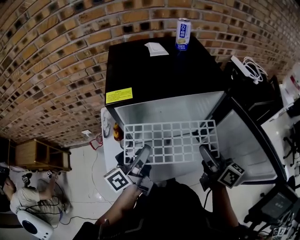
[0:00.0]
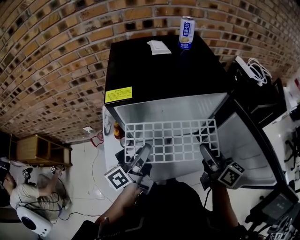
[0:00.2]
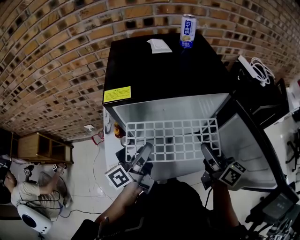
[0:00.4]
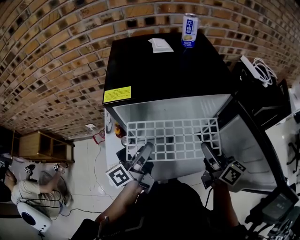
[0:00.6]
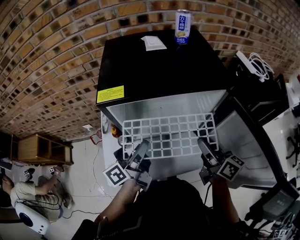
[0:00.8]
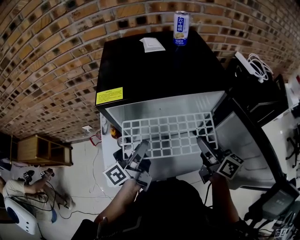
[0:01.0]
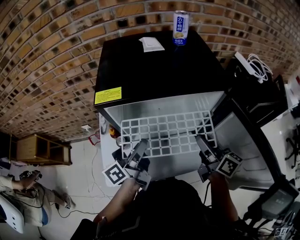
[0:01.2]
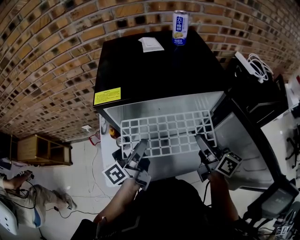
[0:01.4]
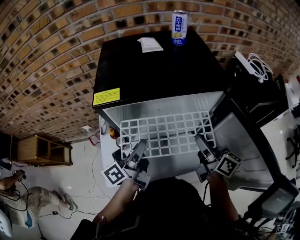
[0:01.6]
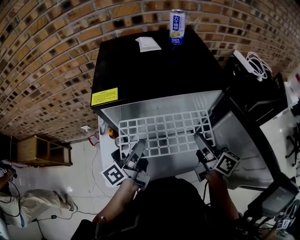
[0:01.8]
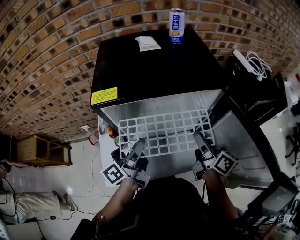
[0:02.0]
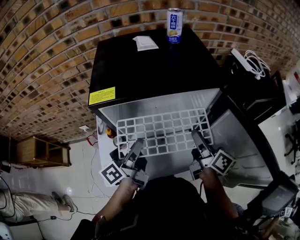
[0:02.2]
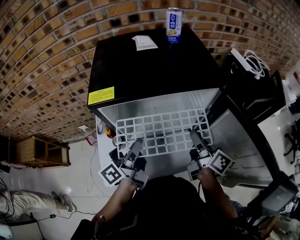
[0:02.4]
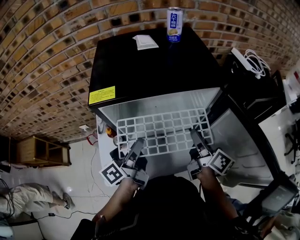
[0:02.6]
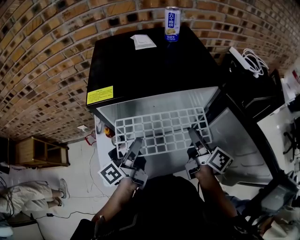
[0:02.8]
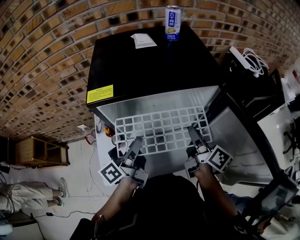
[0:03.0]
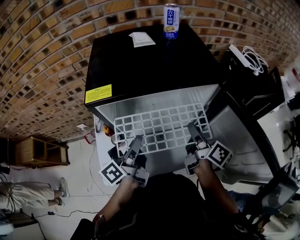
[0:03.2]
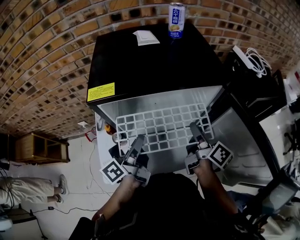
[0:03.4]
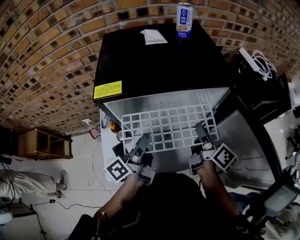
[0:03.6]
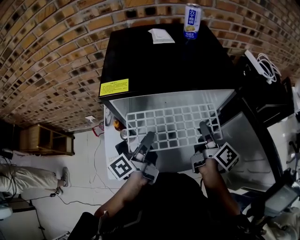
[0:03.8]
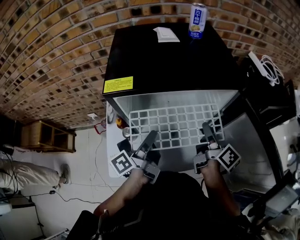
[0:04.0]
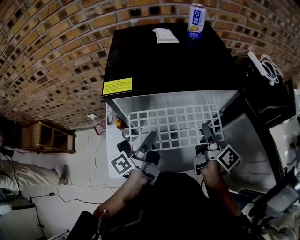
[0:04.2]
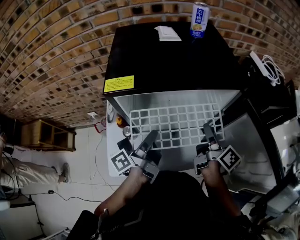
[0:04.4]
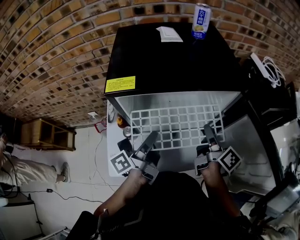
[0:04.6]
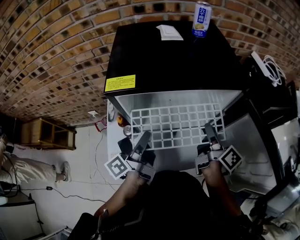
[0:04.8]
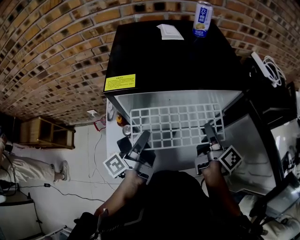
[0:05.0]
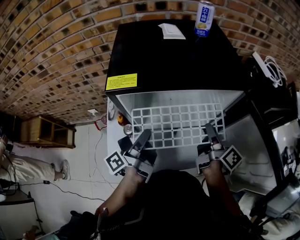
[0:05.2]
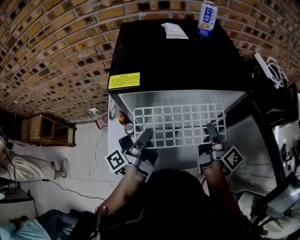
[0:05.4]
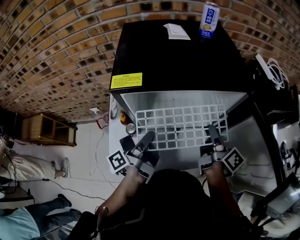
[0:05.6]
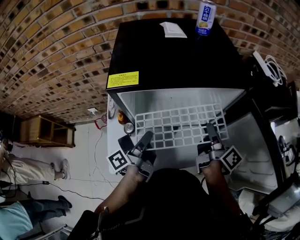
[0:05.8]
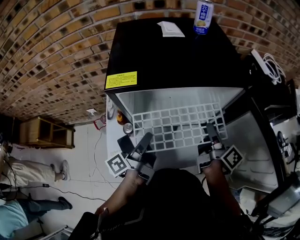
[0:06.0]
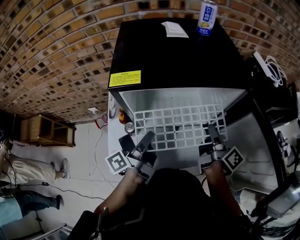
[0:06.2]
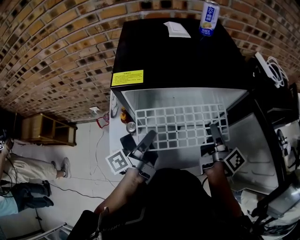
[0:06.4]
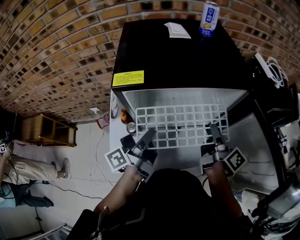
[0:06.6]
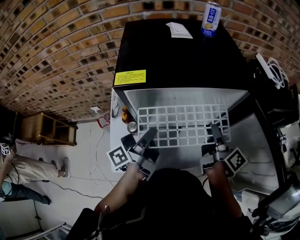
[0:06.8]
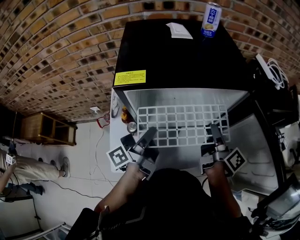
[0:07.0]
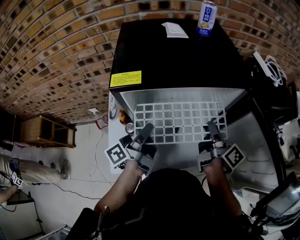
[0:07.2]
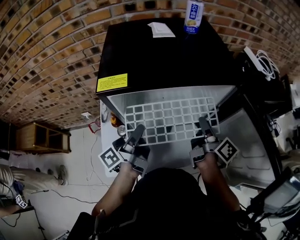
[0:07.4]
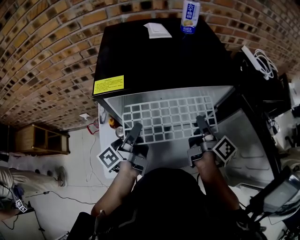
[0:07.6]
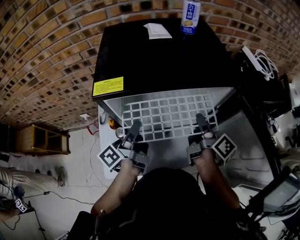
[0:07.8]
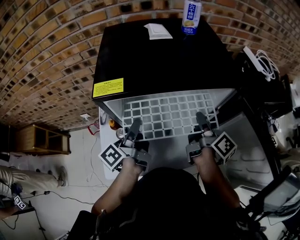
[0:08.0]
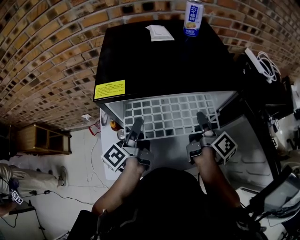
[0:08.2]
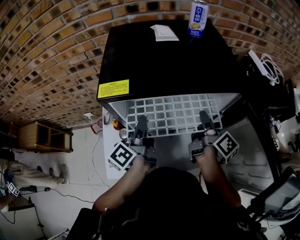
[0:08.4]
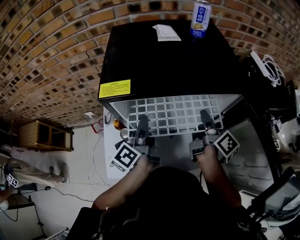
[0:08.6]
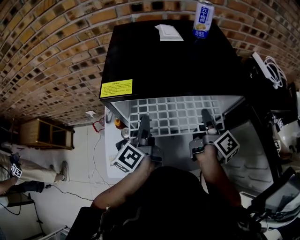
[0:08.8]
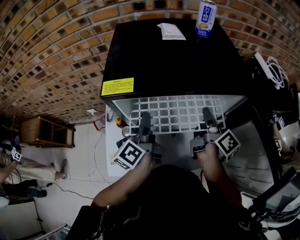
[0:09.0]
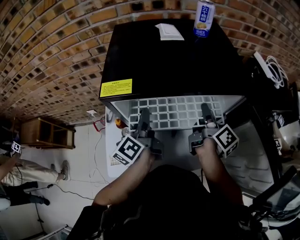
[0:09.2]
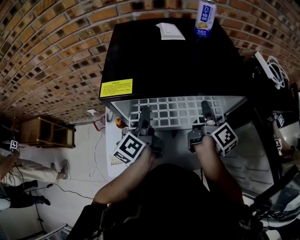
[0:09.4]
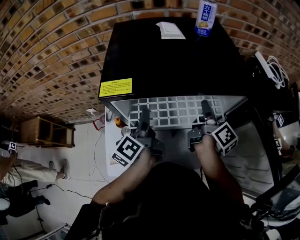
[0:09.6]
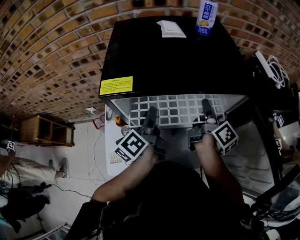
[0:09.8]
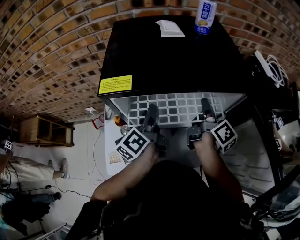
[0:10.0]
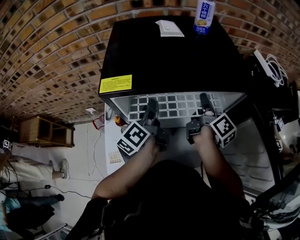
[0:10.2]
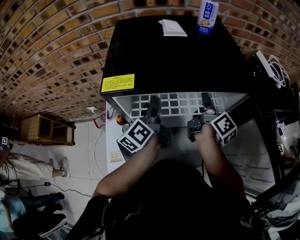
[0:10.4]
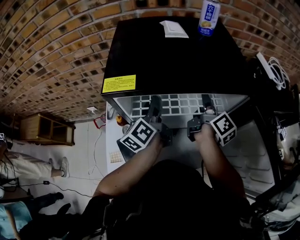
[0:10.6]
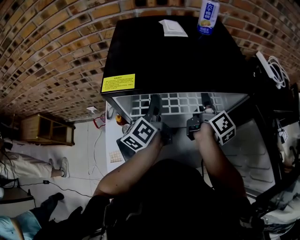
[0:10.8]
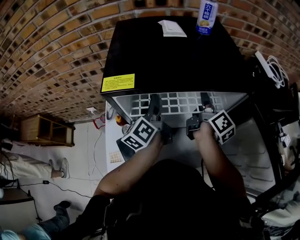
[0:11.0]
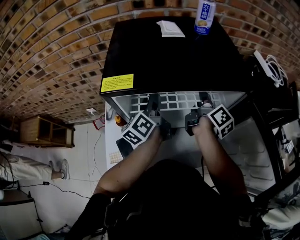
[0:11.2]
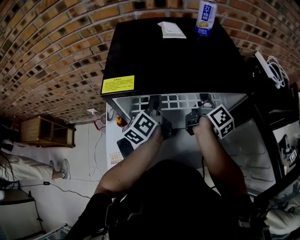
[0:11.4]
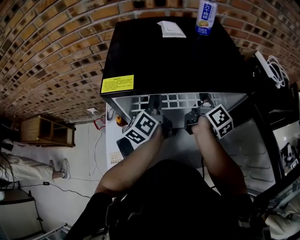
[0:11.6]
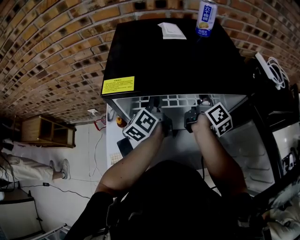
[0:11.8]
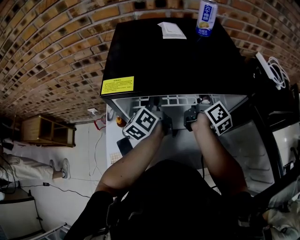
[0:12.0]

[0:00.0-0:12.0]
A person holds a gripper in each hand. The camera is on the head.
0:00.0 to 0:01.6: The right gripper heads forward, covering approximately 5 cm.
0:01.6 to 0:03.0: The grippers make only small movements.
0:03.0 to 0:04.4: There are only small adjustments of the grippers.
0:04.4 to 0:07.6: There are only small adjustments of the grippers.
0:07.6 to 0:09.0: The right gripper shifts roughly 5 cm forward. Meanwhile the left gripper turns by roughly 30 degrees.
0:09.0 to 0:10.4: Both grippers travel together forward, some 5 cm.
0:10.4 to 0:12.0: The grippers stay close to where they were, moving slightly.

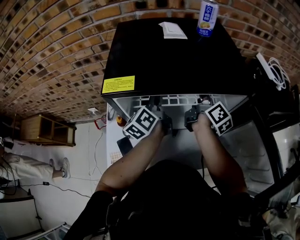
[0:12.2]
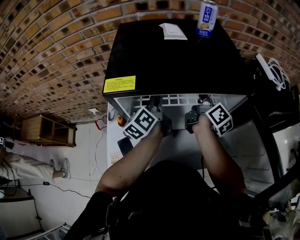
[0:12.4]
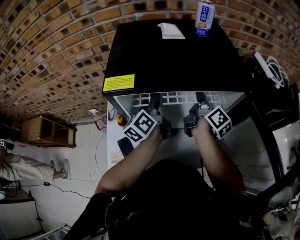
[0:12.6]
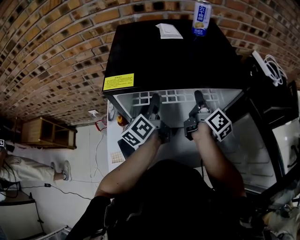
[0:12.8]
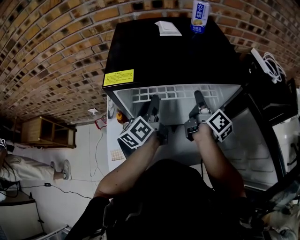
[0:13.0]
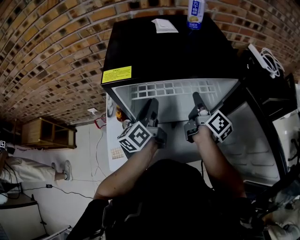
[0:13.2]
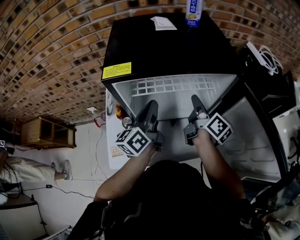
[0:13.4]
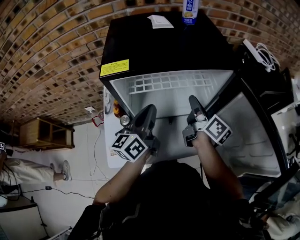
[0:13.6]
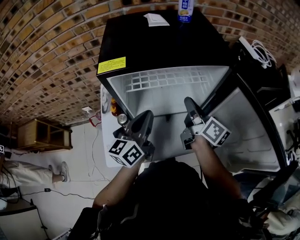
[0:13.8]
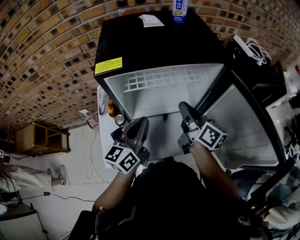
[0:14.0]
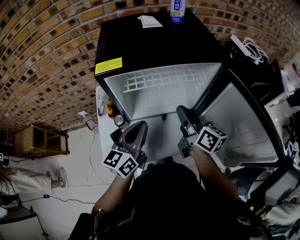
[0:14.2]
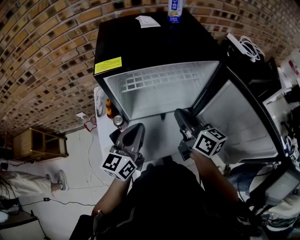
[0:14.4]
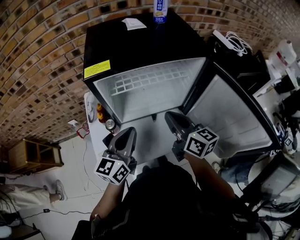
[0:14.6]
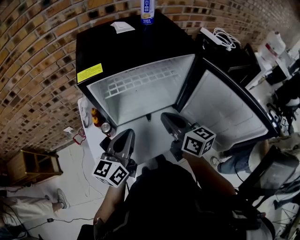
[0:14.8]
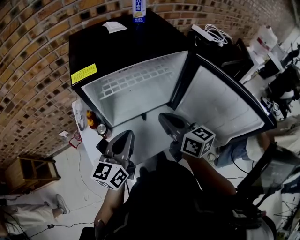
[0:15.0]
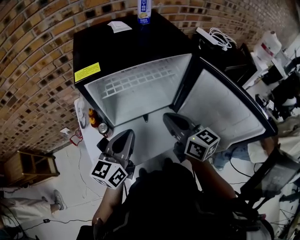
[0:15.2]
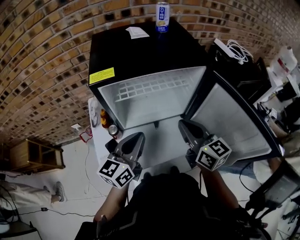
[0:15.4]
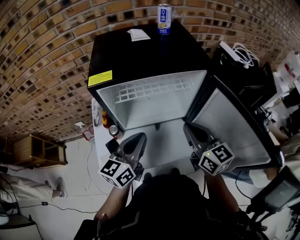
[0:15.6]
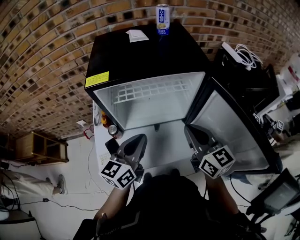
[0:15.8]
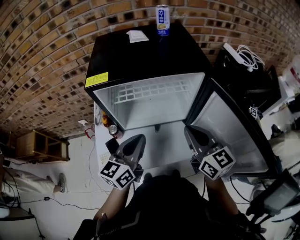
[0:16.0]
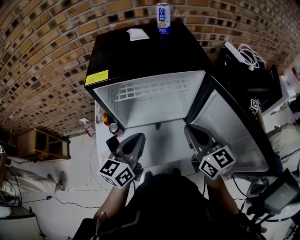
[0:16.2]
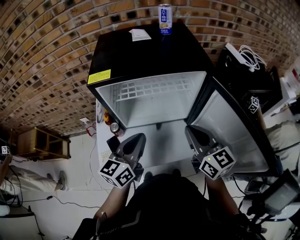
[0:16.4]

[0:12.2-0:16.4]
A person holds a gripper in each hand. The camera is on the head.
0:12.2 to 0:13.6: The two grippers go roughly 15 cm backward. The left gripper changes its angle by some 30 degrees, and closes up.
0:13.6 to 0:15.0: Both grippers move backward, roughly 10 cm. The right gripper rotates roughly 30 degrees, while the left gripper turns by some 20 degrees.
0:15.0 to 0:16.4: The right gripper shifts roughly 10 cm to the right.

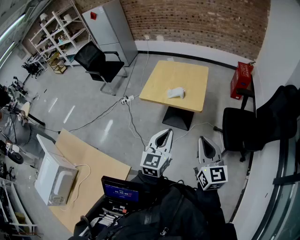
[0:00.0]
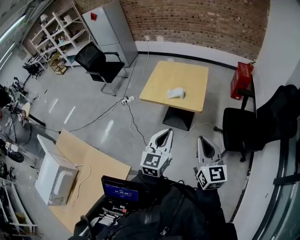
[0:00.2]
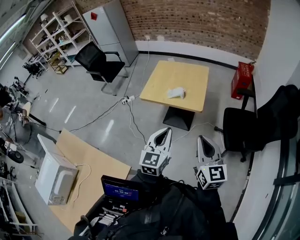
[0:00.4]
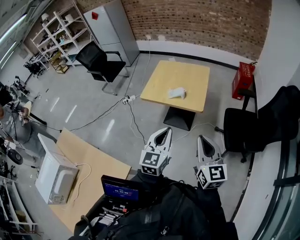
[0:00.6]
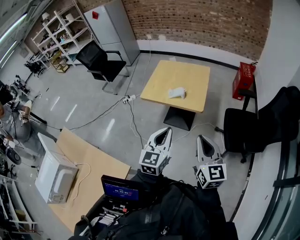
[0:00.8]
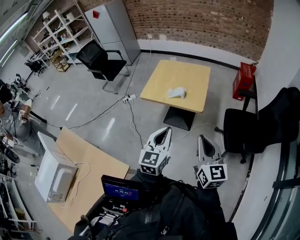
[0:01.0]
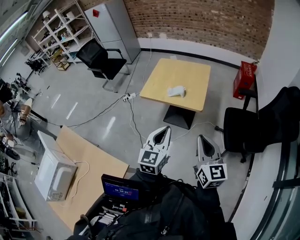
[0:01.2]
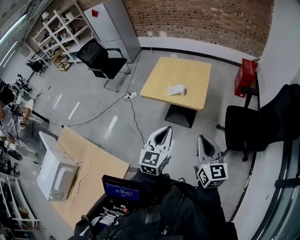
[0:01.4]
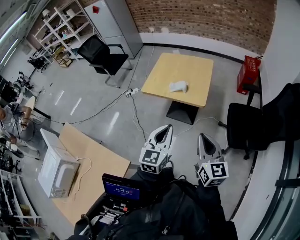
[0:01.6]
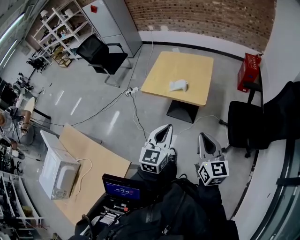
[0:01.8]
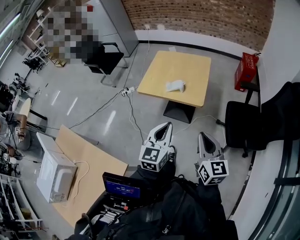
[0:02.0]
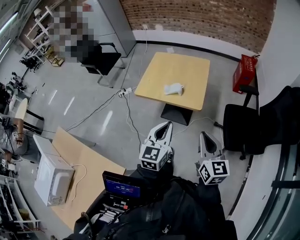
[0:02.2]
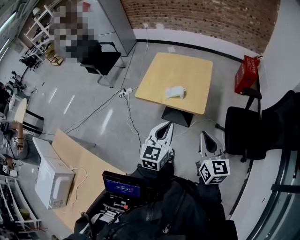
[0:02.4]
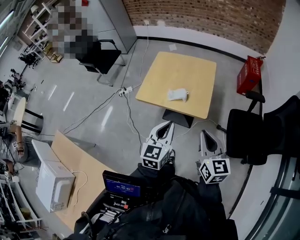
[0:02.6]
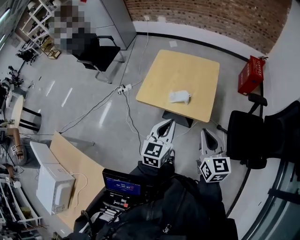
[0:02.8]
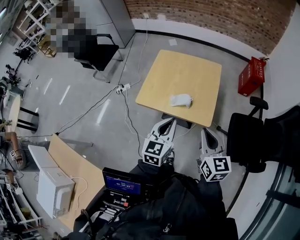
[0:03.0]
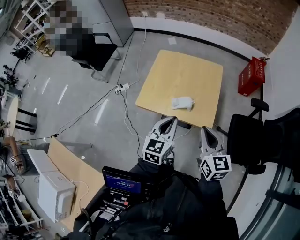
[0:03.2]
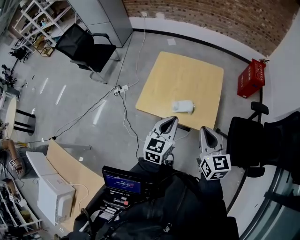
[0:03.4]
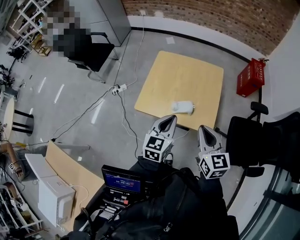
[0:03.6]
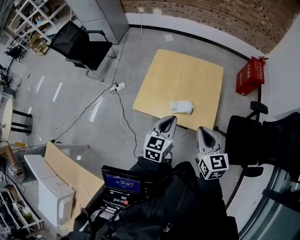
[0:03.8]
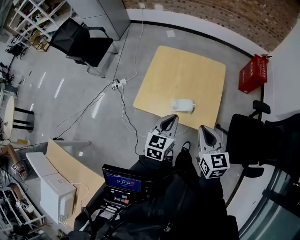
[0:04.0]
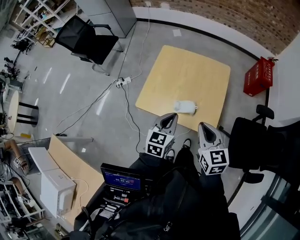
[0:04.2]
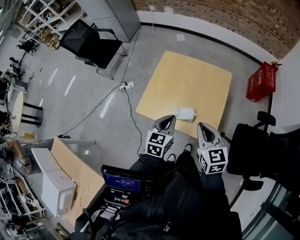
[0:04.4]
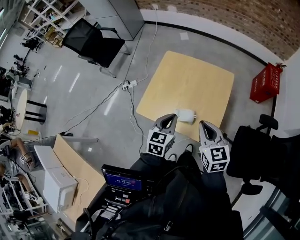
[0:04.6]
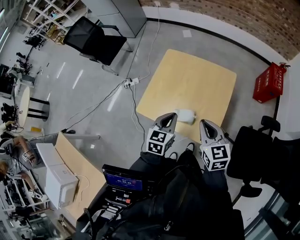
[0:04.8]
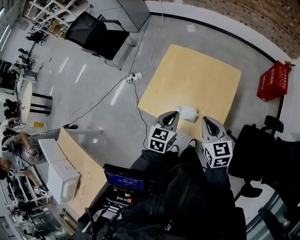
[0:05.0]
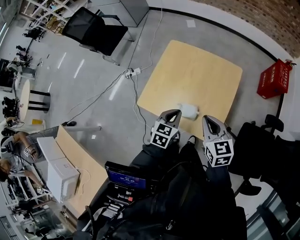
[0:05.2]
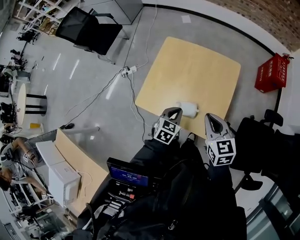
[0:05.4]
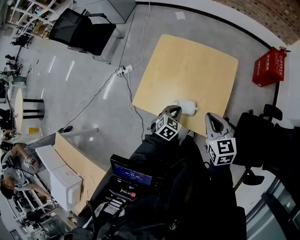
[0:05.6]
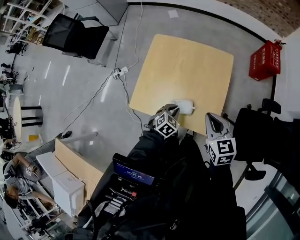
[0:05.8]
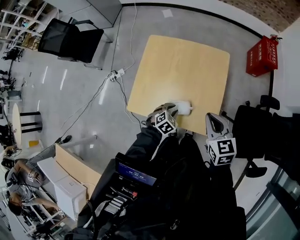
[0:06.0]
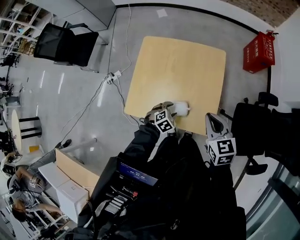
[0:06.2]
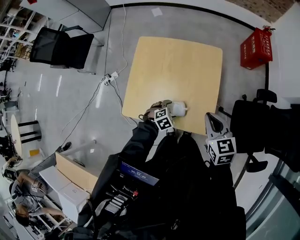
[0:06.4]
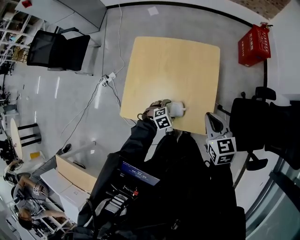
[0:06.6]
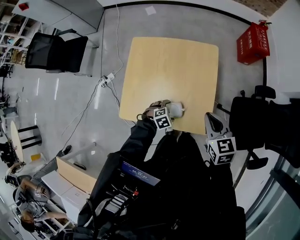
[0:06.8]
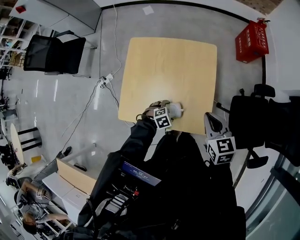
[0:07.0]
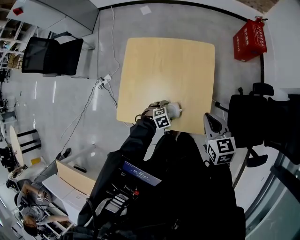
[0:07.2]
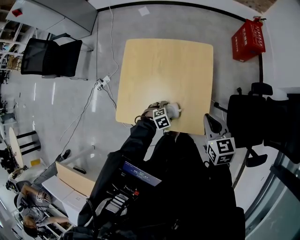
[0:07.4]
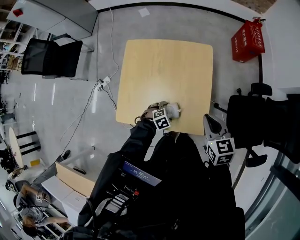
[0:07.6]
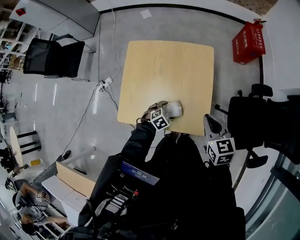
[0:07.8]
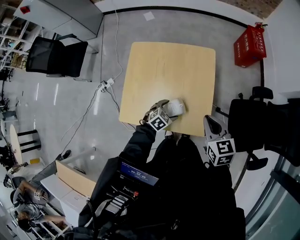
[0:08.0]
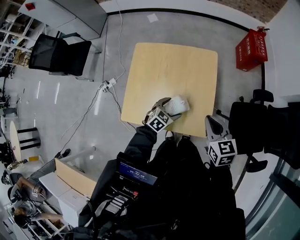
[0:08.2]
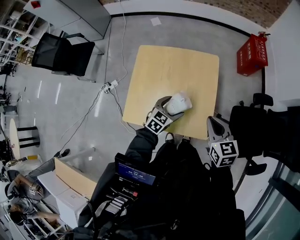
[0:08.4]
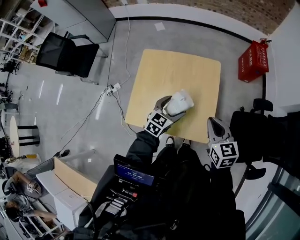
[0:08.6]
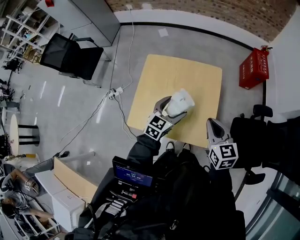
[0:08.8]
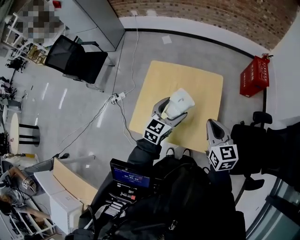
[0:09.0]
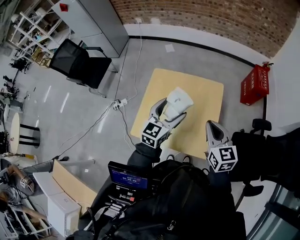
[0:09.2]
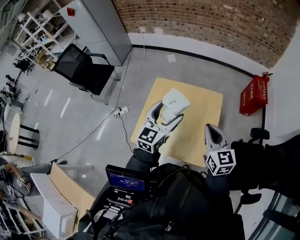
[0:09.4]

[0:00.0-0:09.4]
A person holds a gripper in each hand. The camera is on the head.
0:00.0 to 0:01.6: The right gripper moves approximately 5 cm.
0:01.6 to 0:03.2: The grippers both shift forward by roughly 30 cm.
0:03.2 to 0:04.8: The right gripper goes some 20 cm forward. The left gripper moves forward and downward, some 15 cm.
0:04.8 to 0:06.2: The left gripper goes approximately 20 cm downward, tilts its fingers about 30 degrees downward, and opens its fingers; the right gripper changes place by approximately 5 cm.
0:06.2 to 0:07.8: The left gripper changes place by some 5 cm, and opens its fingers.
0:07.8 to 0:09.4: The left gripper shifts roughly 40 cm upward, and tilts its fingers about 60 degrees upward; the right gripper goes approximately 15 cm upward and to the left, and turns by some 20 degrees.
